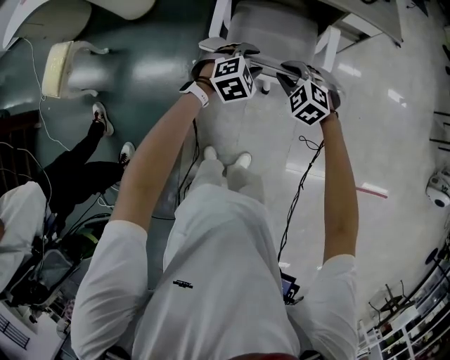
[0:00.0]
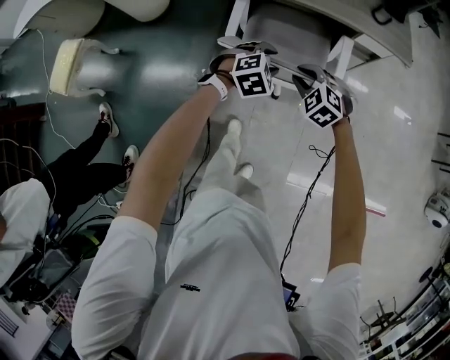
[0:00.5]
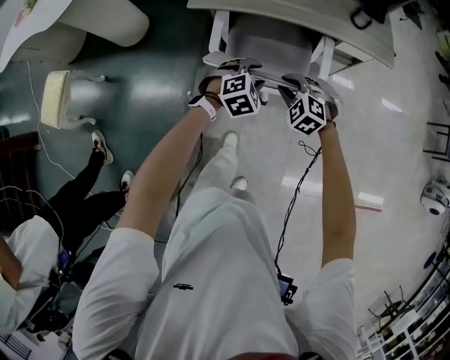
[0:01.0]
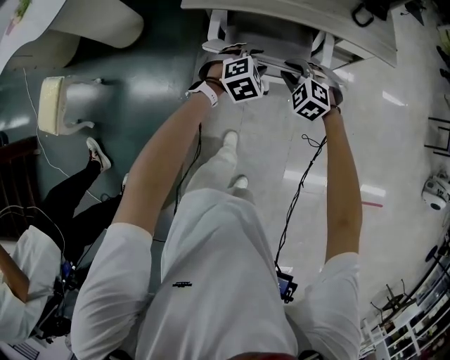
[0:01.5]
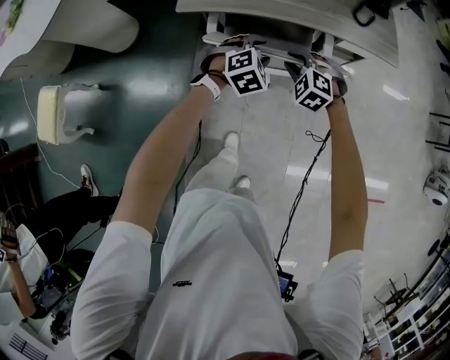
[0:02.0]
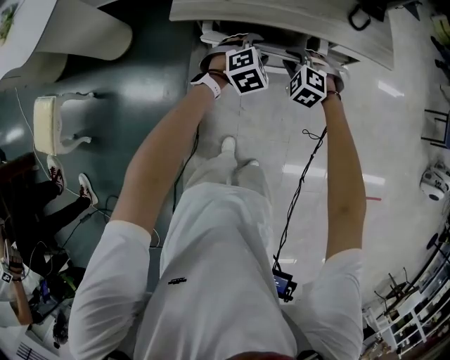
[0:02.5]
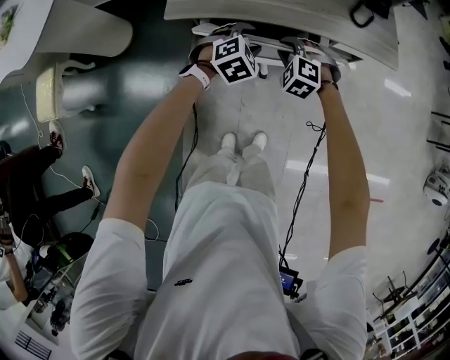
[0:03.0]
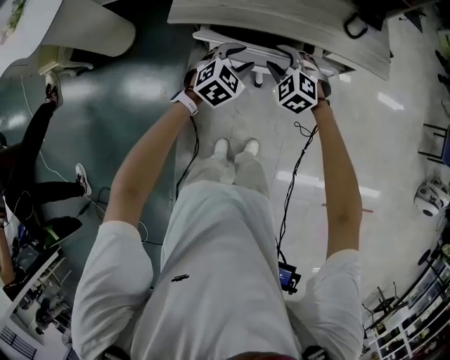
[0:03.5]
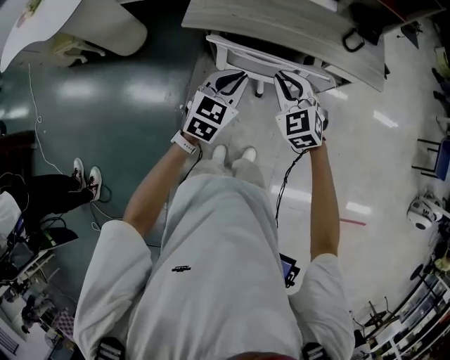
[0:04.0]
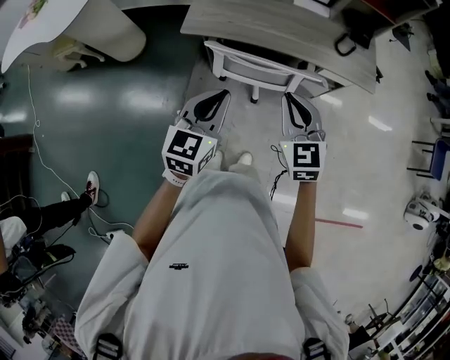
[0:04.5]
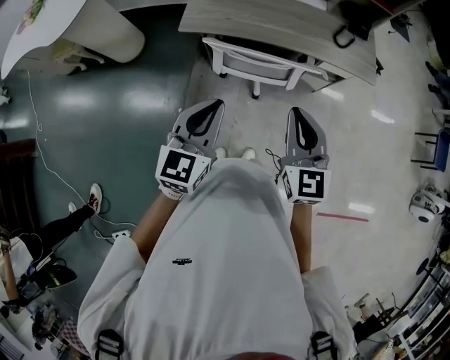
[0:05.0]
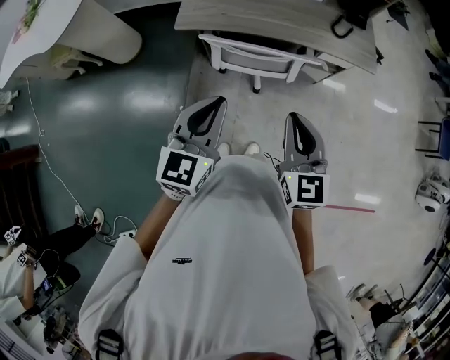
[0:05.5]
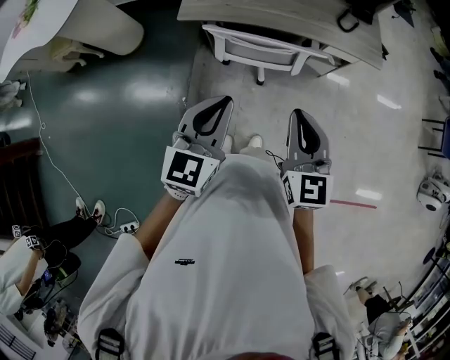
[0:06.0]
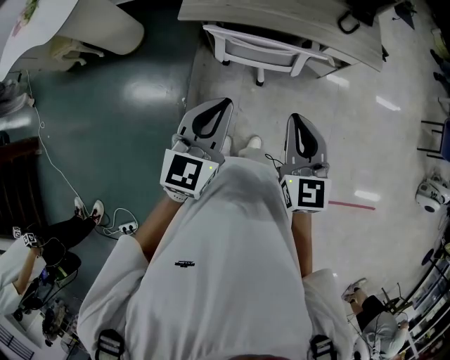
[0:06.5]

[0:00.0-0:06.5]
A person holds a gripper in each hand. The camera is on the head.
0:00.0 to 0:02.0: The grippers both shift forward by roughly 25 cm.
0:02.0 to 0:04.5: Both grippers travel together upward and backward, roughly 25 cm. The right gripper points its fingers roughly 30 degrees further upward, and closes its fingers, while the left gripper tilts its fingers approximately 30 degrees upward, and closes.
0:04.5 to 0:06.5: The right gripper heads backward, covering approximately 10 cm, while the left gripper is displaced backward by about 5 cm.

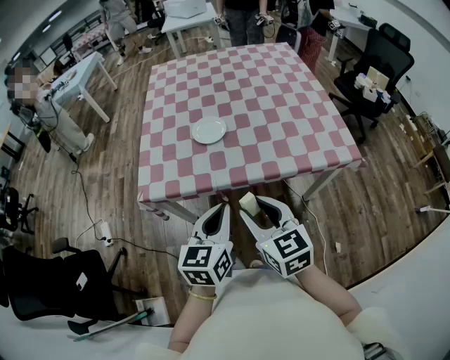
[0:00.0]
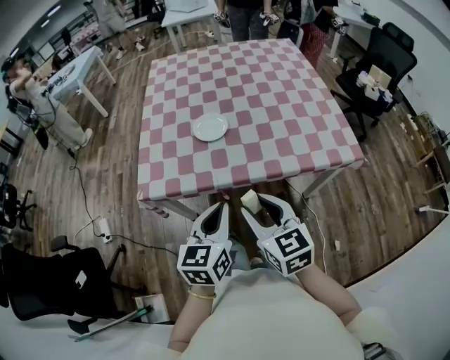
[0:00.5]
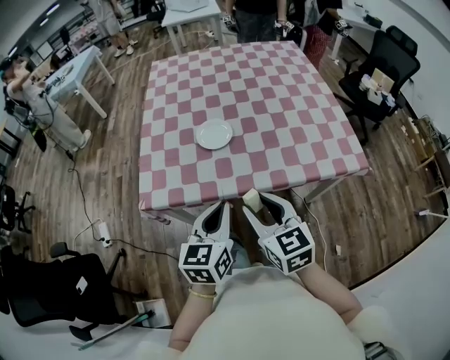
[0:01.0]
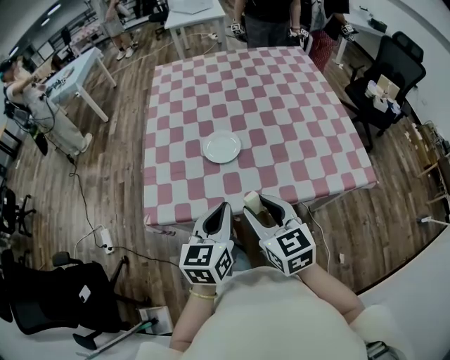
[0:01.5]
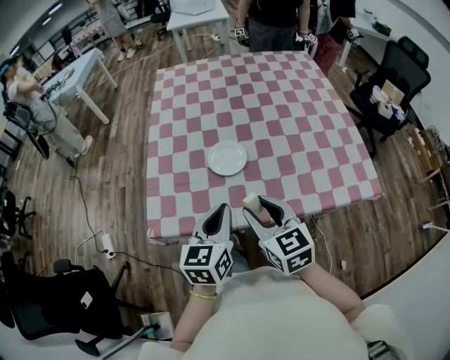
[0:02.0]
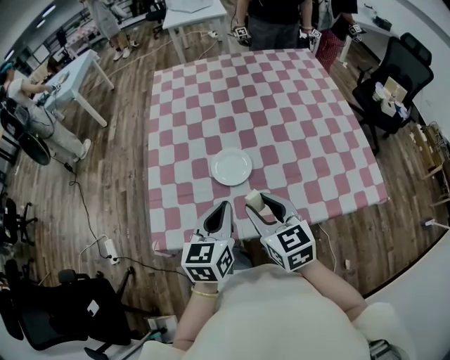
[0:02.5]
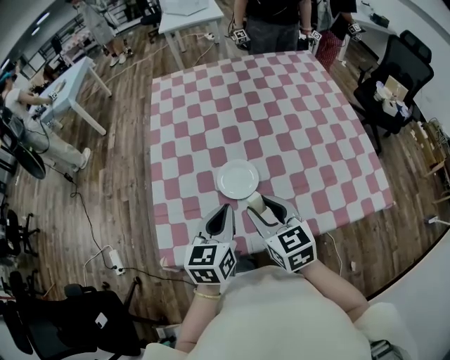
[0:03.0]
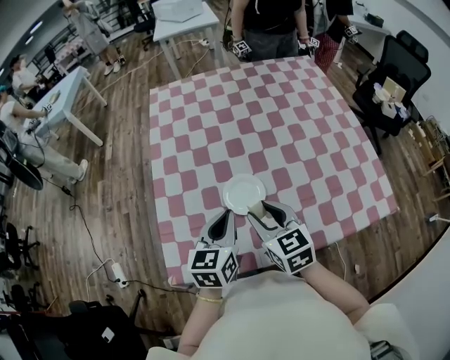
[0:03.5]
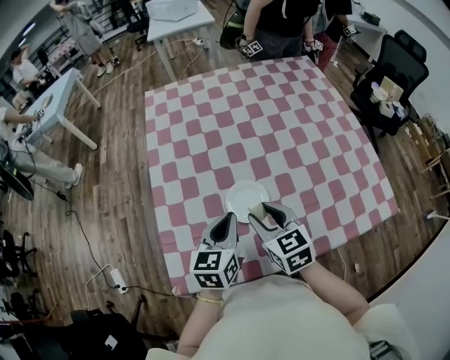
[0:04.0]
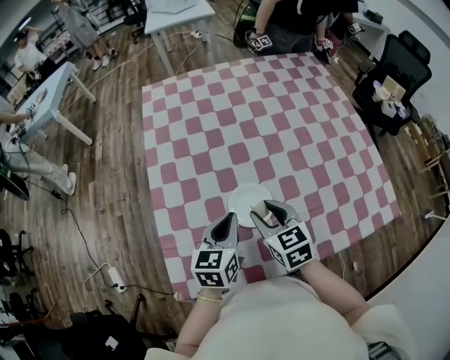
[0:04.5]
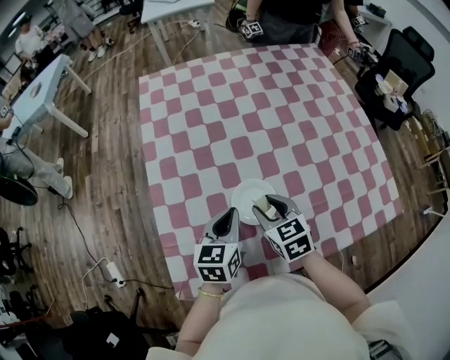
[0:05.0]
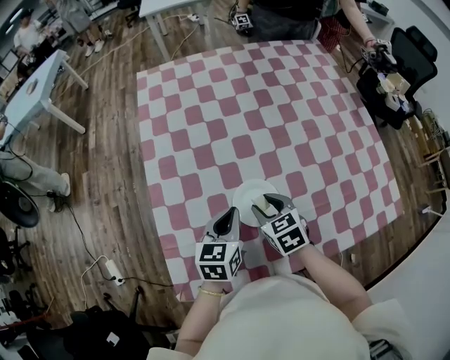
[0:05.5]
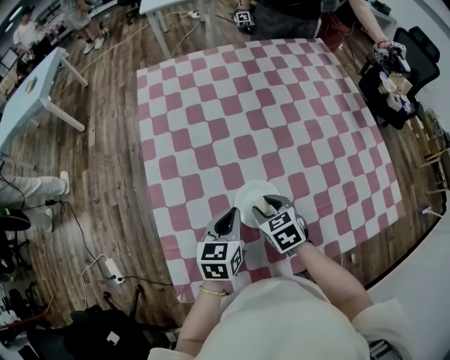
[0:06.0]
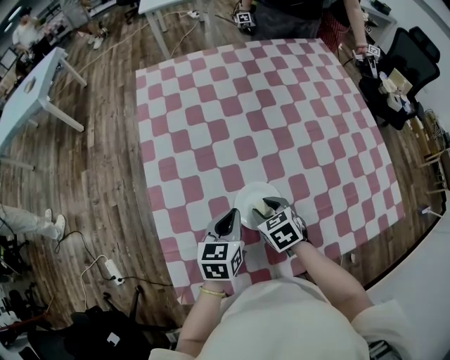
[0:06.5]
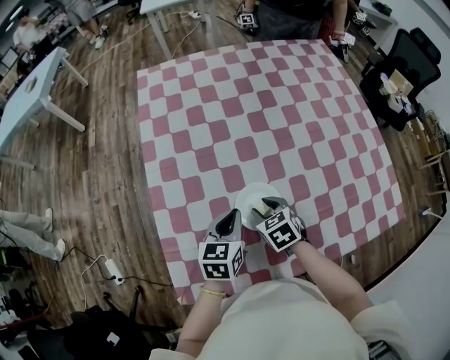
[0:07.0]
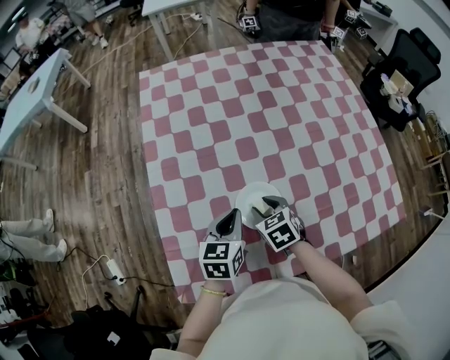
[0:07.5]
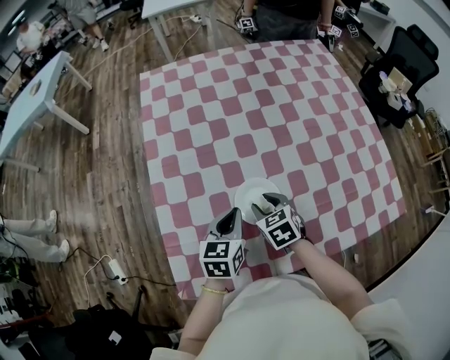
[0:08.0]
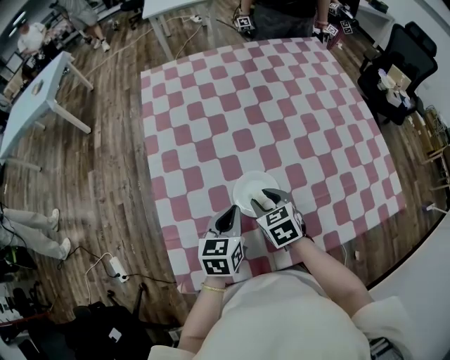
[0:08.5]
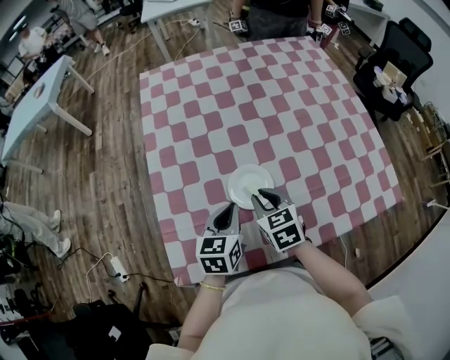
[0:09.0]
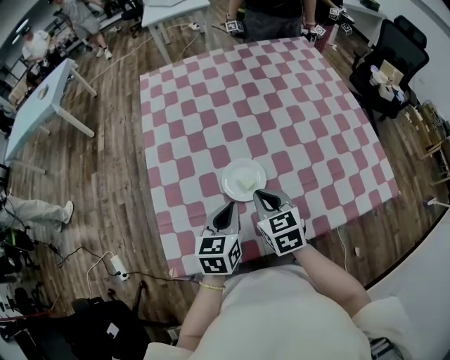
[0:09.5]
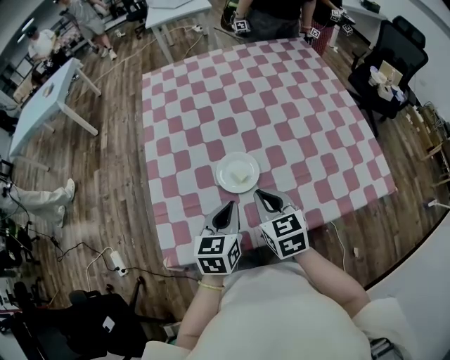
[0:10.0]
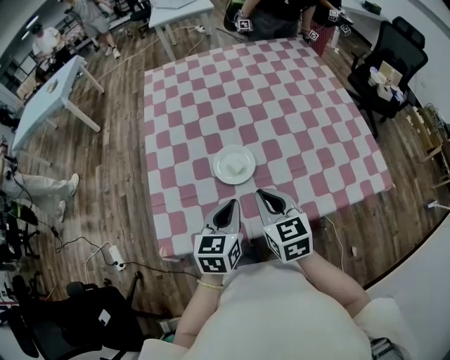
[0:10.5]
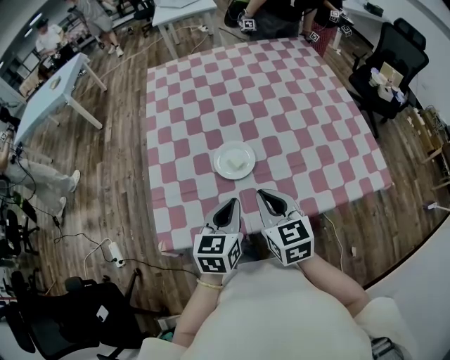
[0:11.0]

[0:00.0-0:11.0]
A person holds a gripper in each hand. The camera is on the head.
0:00.0 to 0:02.0: The two grippers go roughly 20 cm forward.
0:02.0 to 0:03.5: The two grippers go some 15 cm forward.
0:03.5 to 0:05.5: The left gripper shifts some 15 cm forward and downward. Meanwhile the right gripper goes roughly 15 cm downward and forward, and swivels about 20 degrees.
0:05.5 to 0:07.5: The grippers make only small movements.
0:07.5 to 0:09.0: The left gripper shifts some 5 cm backward, while the right gripper heads upward and backward, covering about 10 cm, and closes.
0:09.0 to 0:11.0: The right gripper travels backward and upward by roughly 15 cm. Meanwhile the left gripper moves backward and to the right, about 15 cm.

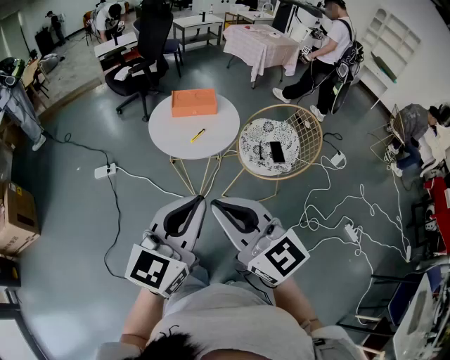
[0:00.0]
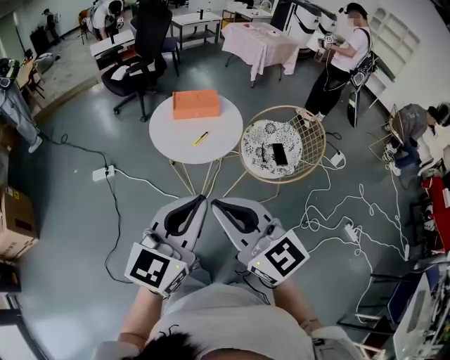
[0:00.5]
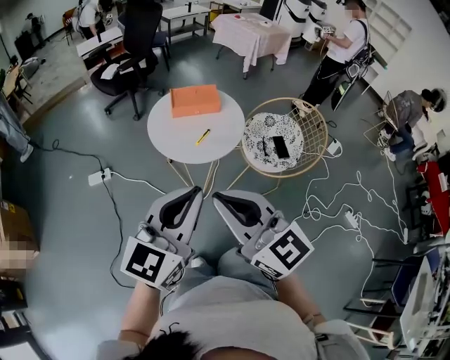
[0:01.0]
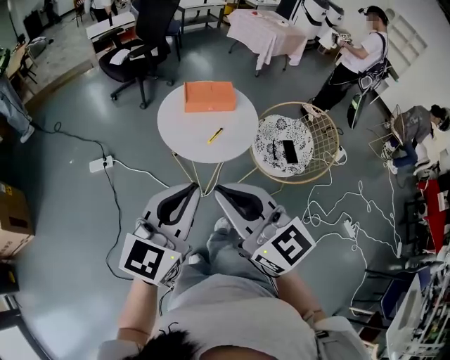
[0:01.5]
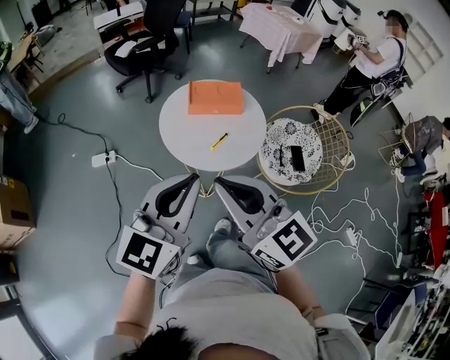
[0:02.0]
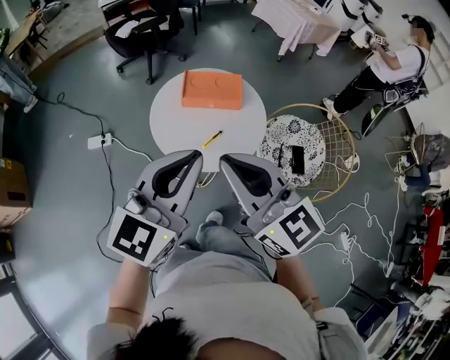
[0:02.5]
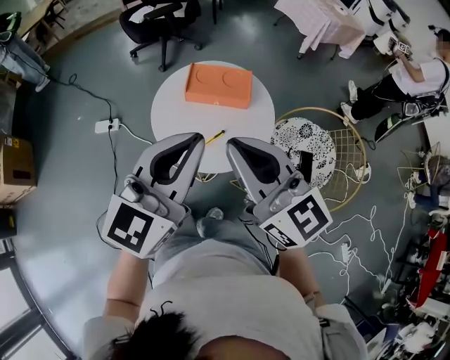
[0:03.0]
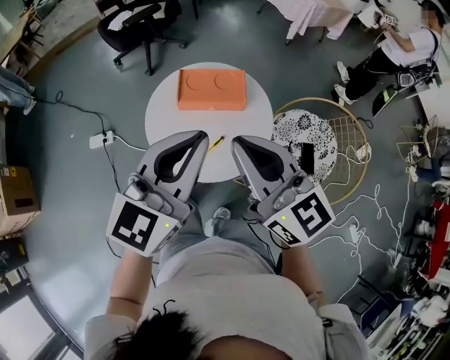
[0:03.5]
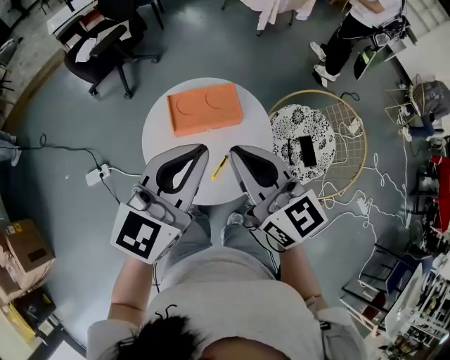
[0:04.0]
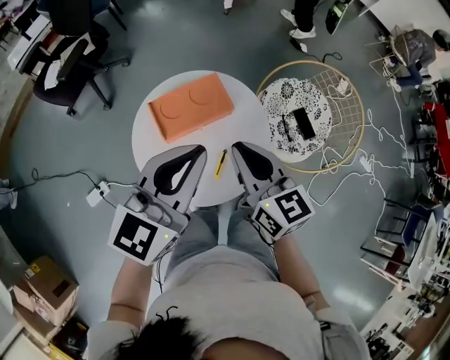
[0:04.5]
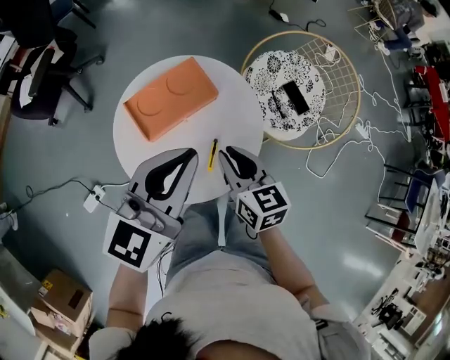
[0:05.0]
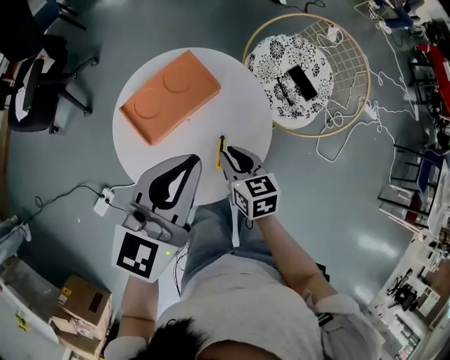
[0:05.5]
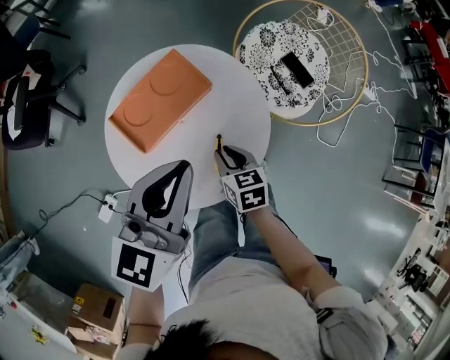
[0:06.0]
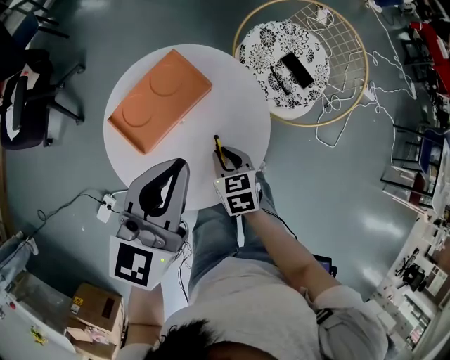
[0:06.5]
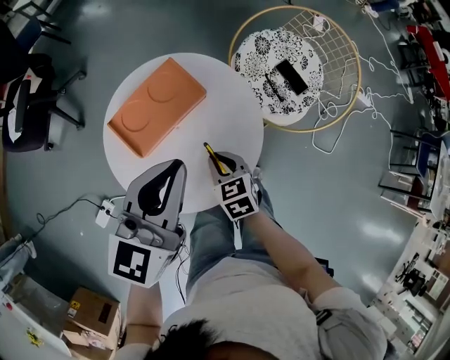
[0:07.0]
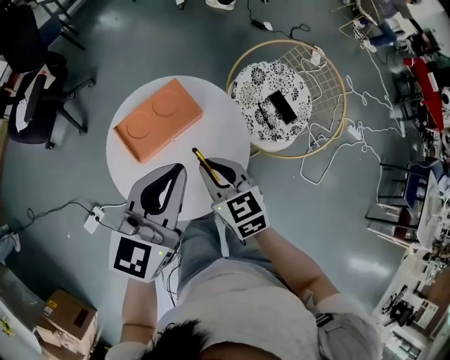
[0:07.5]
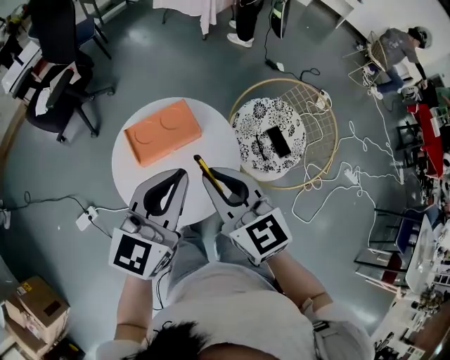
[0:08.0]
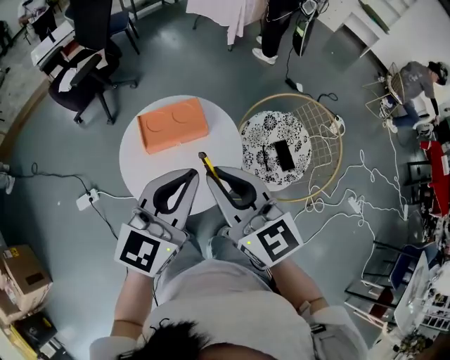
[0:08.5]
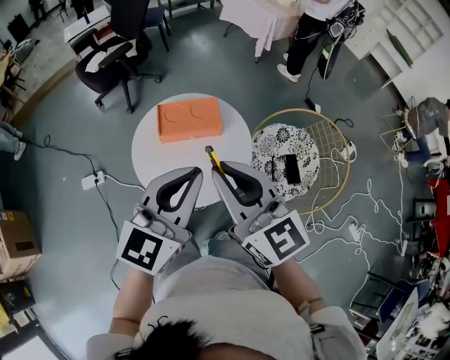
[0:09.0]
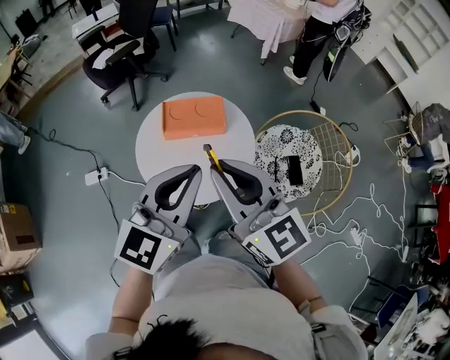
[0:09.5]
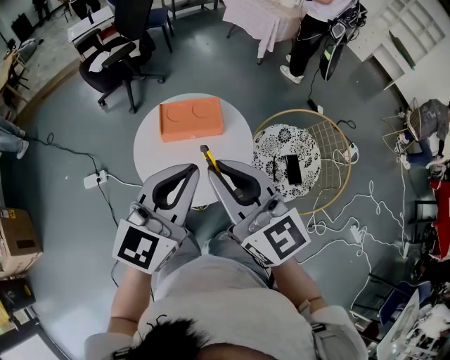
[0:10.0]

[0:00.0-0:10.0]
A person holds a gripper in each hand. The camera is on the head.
0:00.0 to 0:02.0: The right gripper goes roughly 20 cm forward. Meanwhile the left gripper moves forward and to the left, about 20 cm.
0:02.0 to 0:04.0: Both grippers travel together forward, roughly 25 cm. The right gripper rotates approximately 20 degrees.
0:04.0 to 0:06.0: The left gripper heads downward, covering about 10 cm, and swivels some 30 degrees. The right gripper goes approximately 35 cm downward, and points its fingers approximately 40 degrees further downward.
0:06.0 to 0:08.0: The right gripper is displaced upward by some 30 cm, and tilts its fingers some 30 degrees upward; the left gripper shifts approximately 10 cm upward and to the right.
0:08.0 to 0:10.0: The left gripper moves backward, approximately 10 cm, while the right gripper goes roughly 10 cm upward and backward, and rotates approximately 30 degrees.
